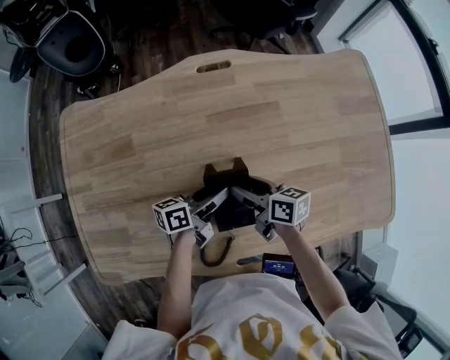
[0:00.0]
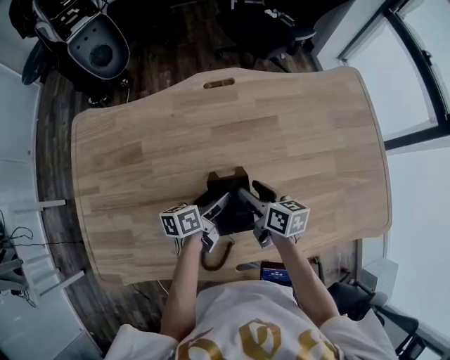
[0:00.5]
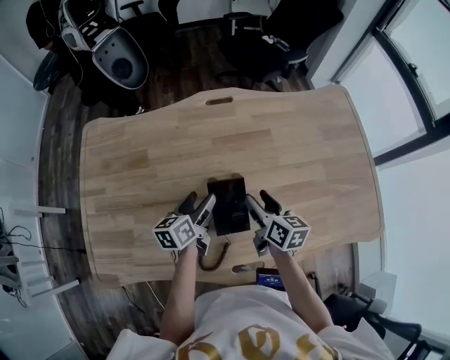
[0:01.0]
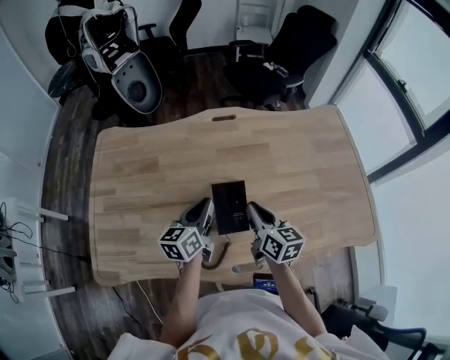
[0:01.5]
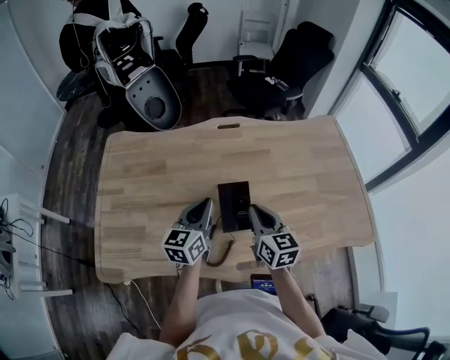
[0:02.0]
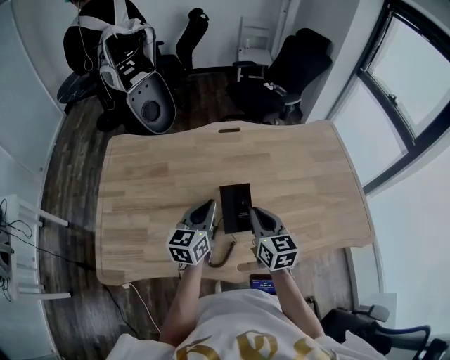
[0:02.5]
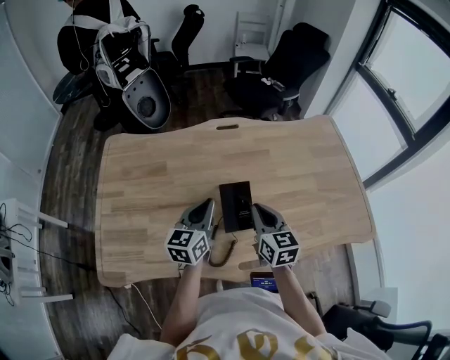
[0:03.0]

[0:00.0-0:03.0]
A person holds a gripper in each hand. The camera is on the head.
0.0 to 1.5 s: Both grippers travel together upward and backward, about 15 cm. The right gripper rotates approximately 30 degrees, and closes. Meanwhile the left gripper swivels about 40 degrees, and closes up.
1.5 to 3.0 s: The right gripper moves about 5 cm; the left gripper moves about 5 cm.

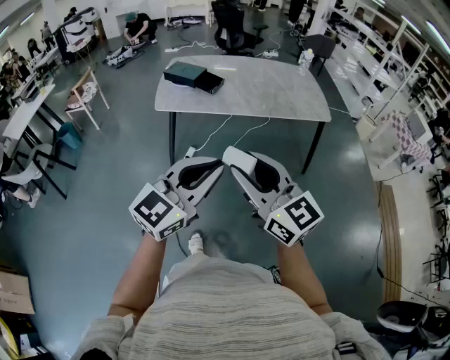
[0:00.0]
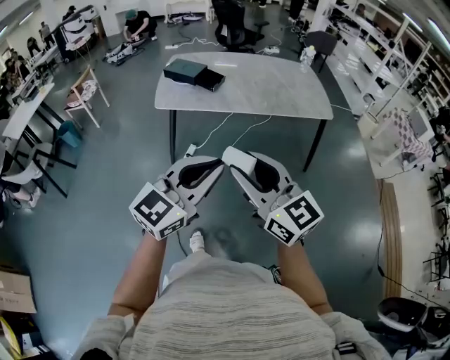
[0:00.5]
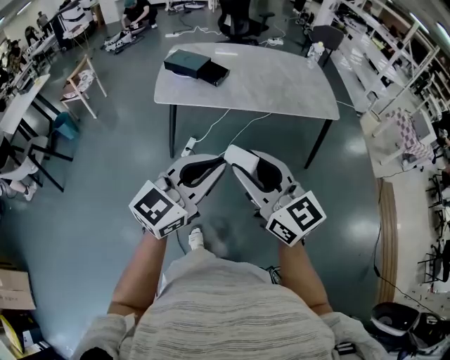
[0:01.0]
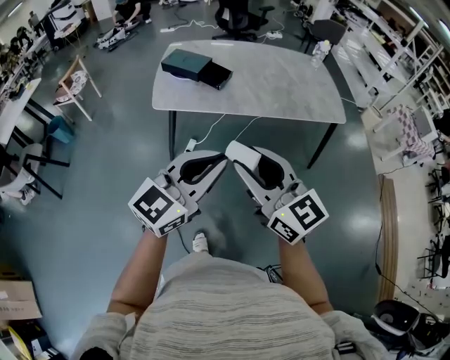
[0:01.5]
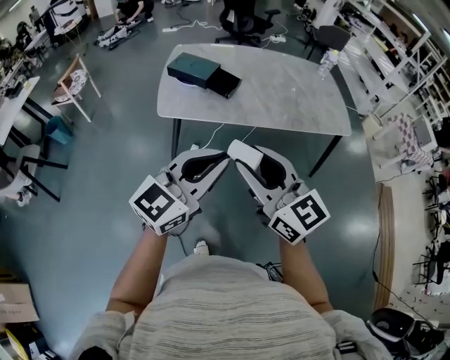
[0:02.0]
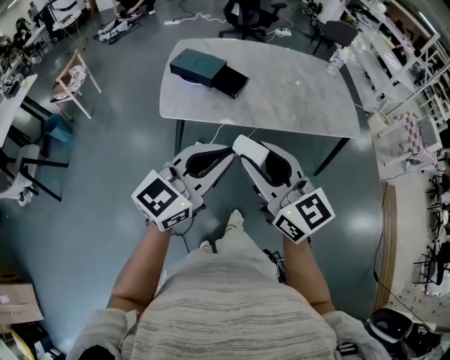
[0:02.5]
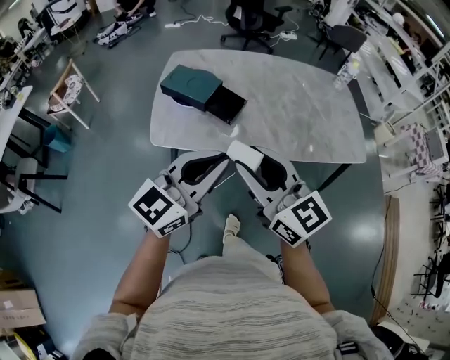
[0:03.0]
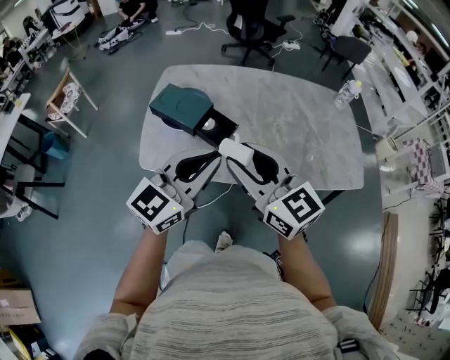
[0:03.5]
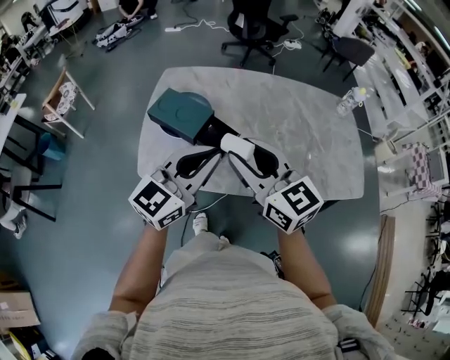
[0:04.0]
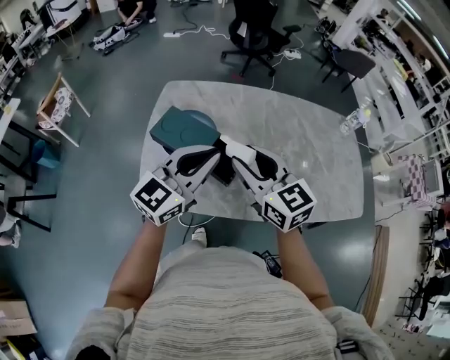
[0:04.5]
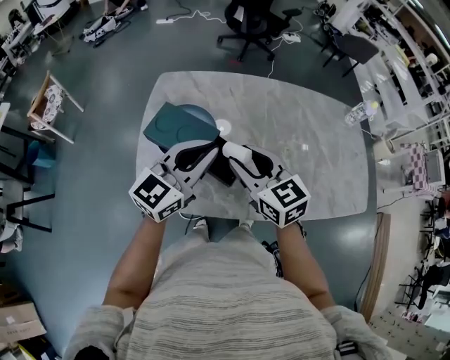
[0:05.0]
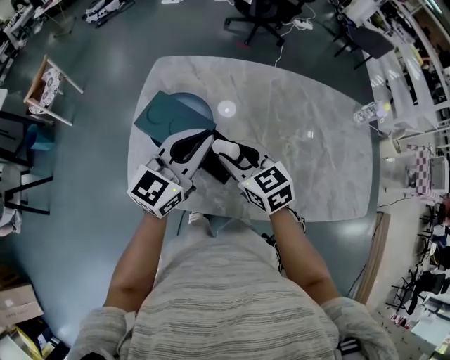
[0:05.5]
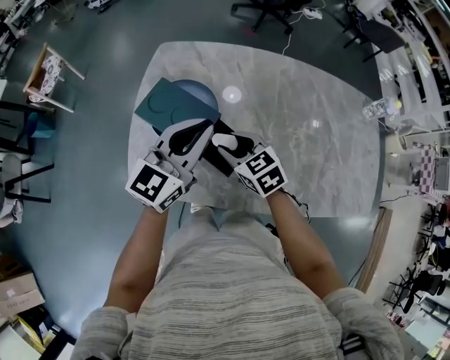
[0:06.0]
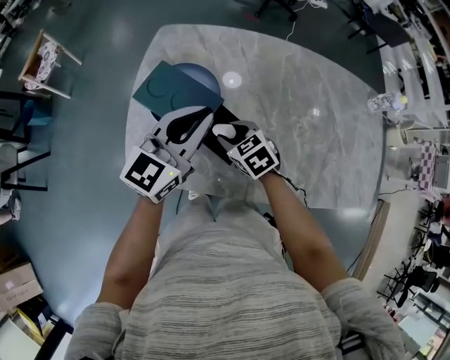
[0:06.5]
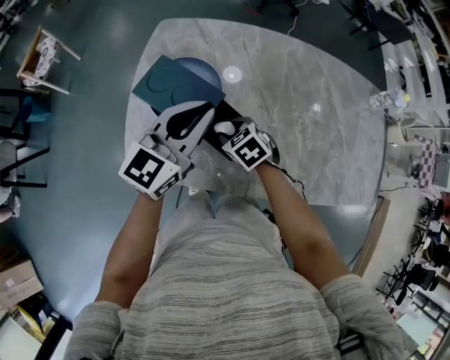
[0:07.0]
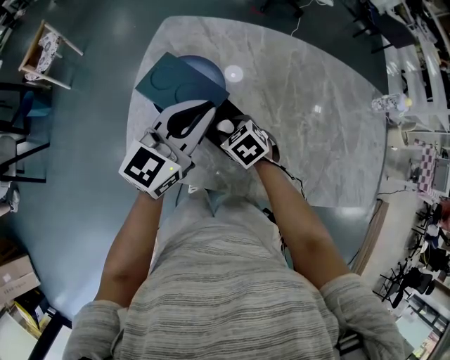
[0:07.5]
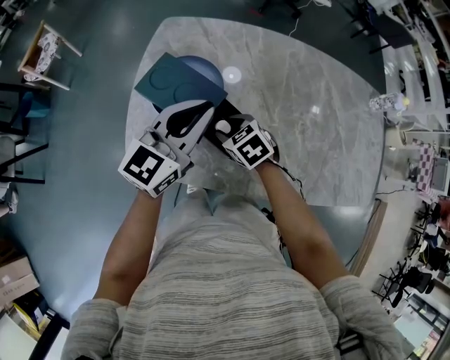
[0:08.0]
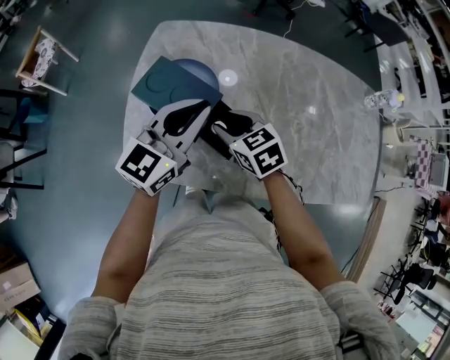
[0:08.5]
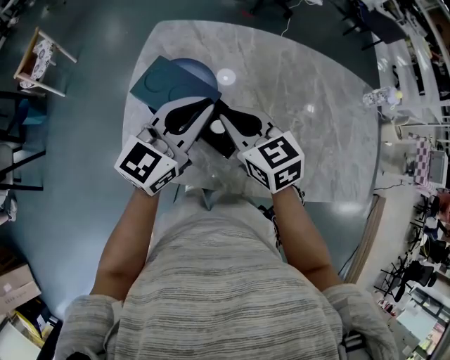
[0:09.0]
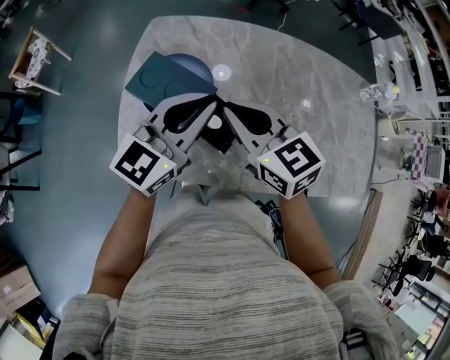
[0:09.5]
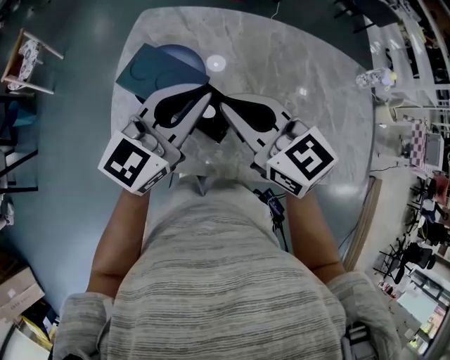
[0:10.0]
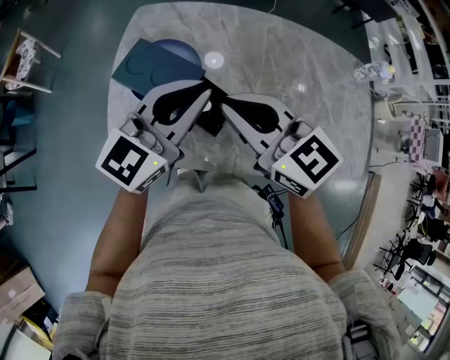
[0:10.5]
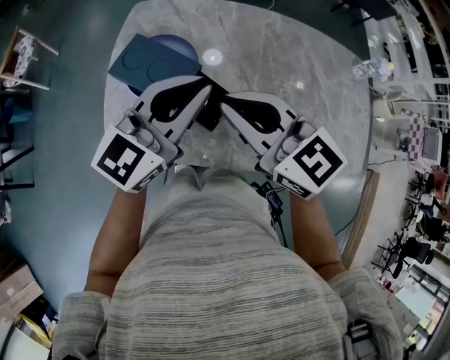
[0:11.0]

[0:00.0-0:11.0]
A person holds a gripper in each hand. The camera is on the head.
0.0 to 2.0 s: Both grippers travel together forward and to the left, about 25 cm.
2.0 to 3.5 s: Both grippers move forward, approximately 30 cm.
3.5 to 5.5 s: The left gripper shifts approximately 25 cm forward. Meanwhile the right gripper travels forward and downward by about 30 cm, and turns by approximately 30 degrees.
5.5 to 7.5 s: The right gripper is displaced downward by about 15 cm, and tips its fingers downward by about 30 degrees.
7.5 to 9.0 s: The right gripper heads upward, covering roughly 20 cm, points its fingers approximately 30 degrees further upward, and closes its fingers.
9.0 to 11.0 s: The right gripper shifts about 10 cm upward and backward, while the left gripper ends up roughly 5 cm from where it was.

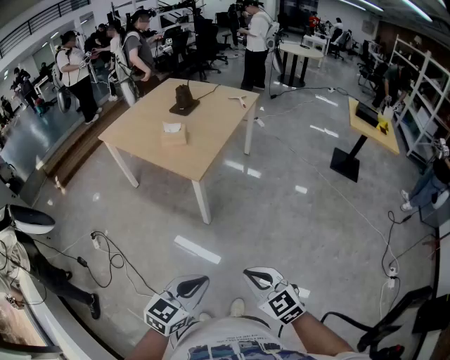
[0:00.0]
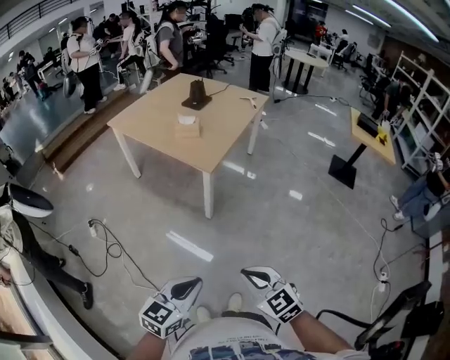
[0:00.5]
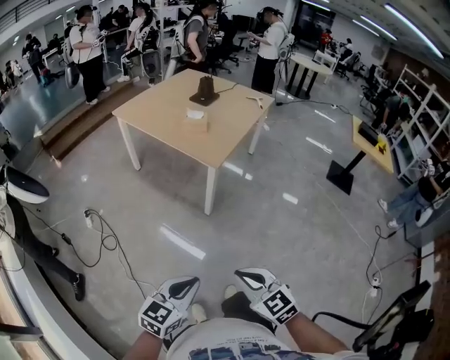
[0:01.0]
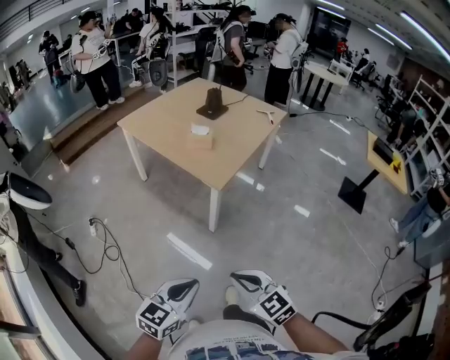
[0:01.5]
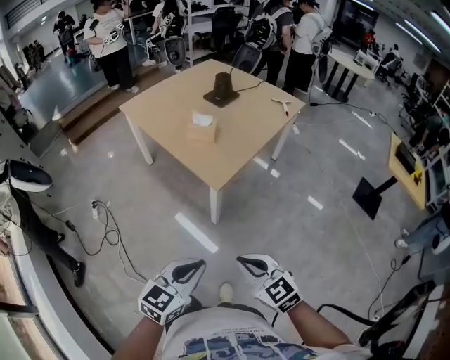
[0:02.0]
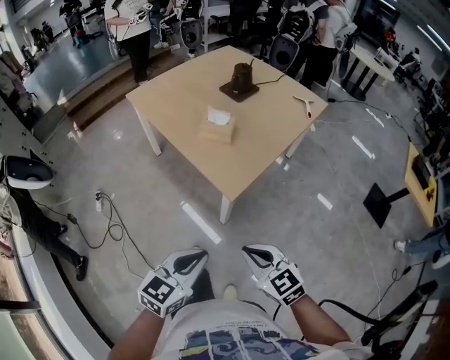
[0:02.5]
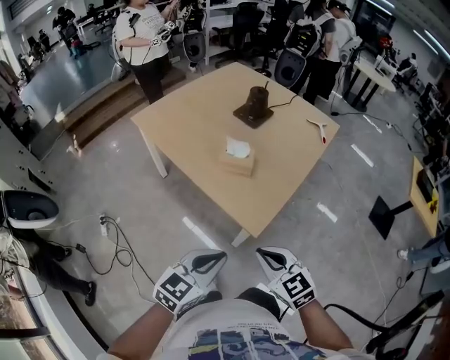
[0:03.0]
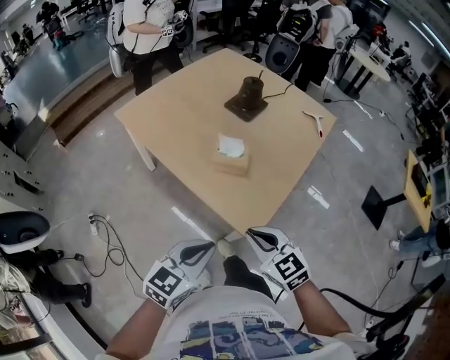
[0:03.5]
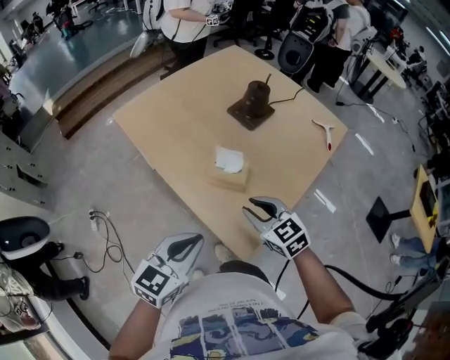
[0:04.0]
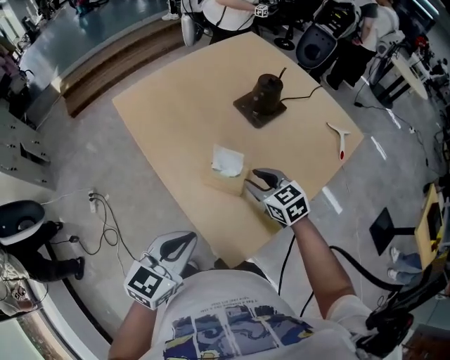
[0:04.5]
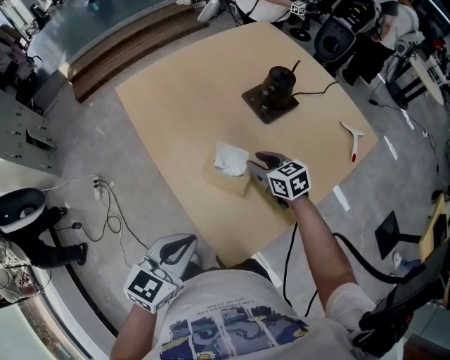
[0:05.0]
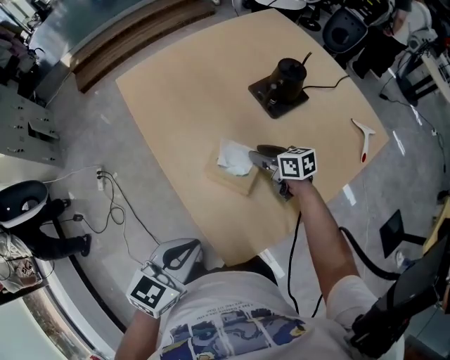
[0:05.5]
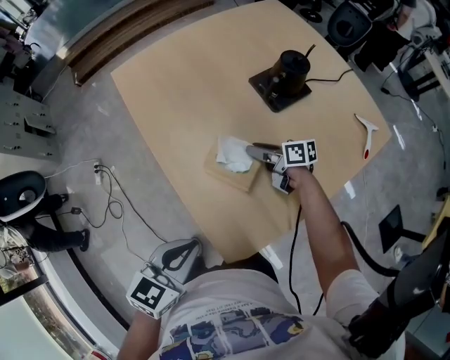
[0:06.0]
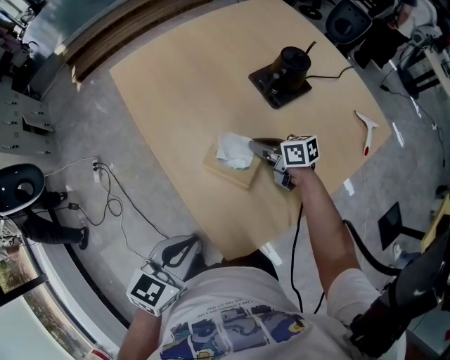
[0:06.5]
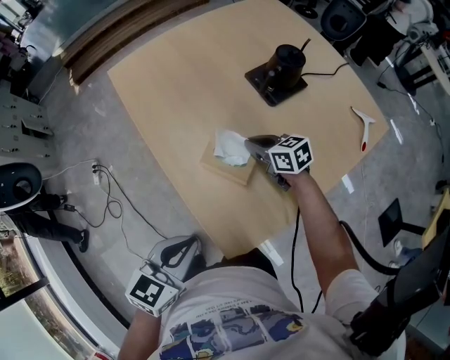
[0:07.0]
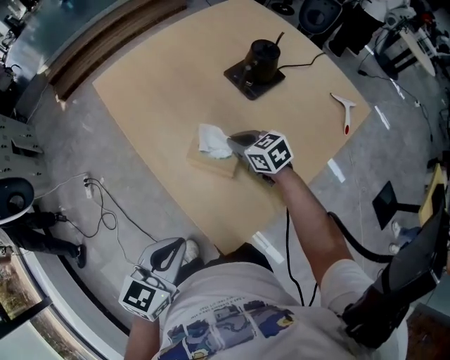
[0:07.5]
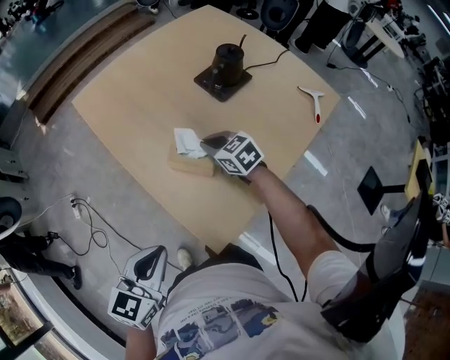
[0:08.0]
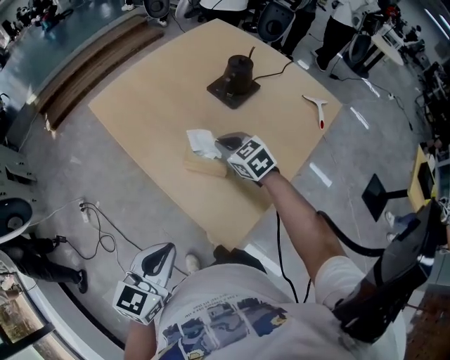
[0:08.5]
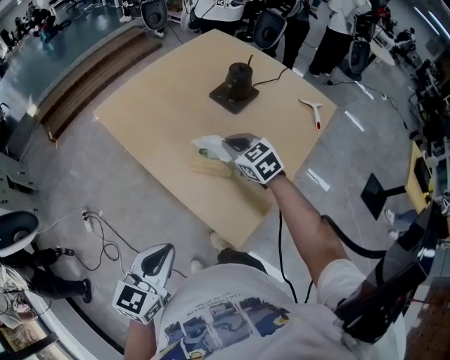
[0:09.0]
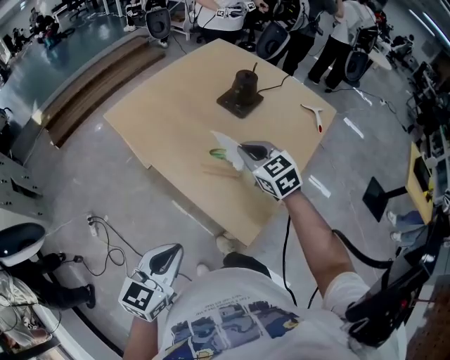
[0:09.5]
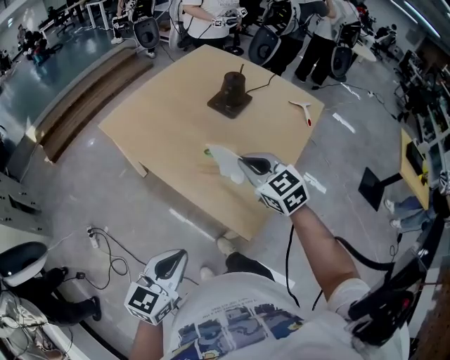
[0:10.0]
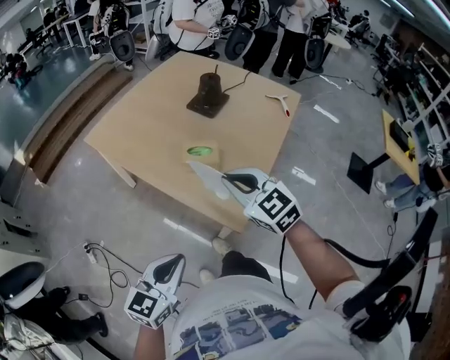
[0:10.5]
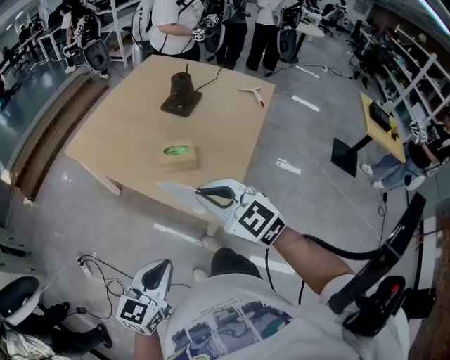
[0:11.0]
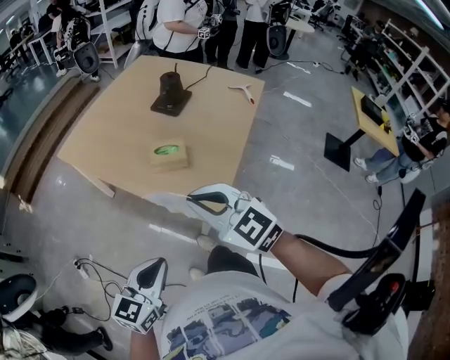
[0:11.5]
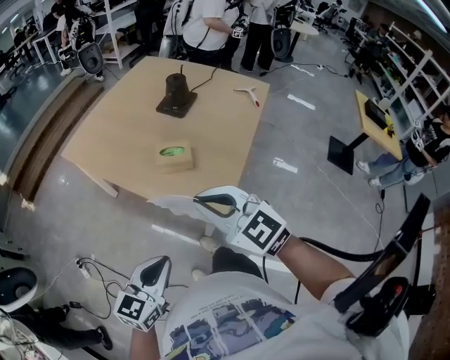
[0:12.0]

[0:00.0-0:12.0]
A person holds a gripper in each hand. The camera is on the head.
0.0 to 2.0 s: Both grippers move forward, roughly 20 cm.
2.0 to 4.0 s: Both grippers are carried forward, roughly 50 cm. The right gripper opens up.
4.0 to 6.0 s: The right gripper goes about 30 cm forward and downward, and rotates around the line of its fingers by some 50 degrees, clockwise from behind; the left gripper shifts some 10 cm downward, forward and to the right.
6.0 to 8.0 s: The right gripper moves upward, approximately 5 cm, twists roughly 40 degrees counterclockwise, seen from behind, and closes. The left gripper changes place by about 5 cm.
8.0 to 10.0 s: The right gripper moves upward and backward, some 25 cm, and rotates about 30 degrees. The left gripper moves backward and to the left, some 15 cm.
10.0 to 12.0 s: The right gripper goes approximately 20 cm backward.

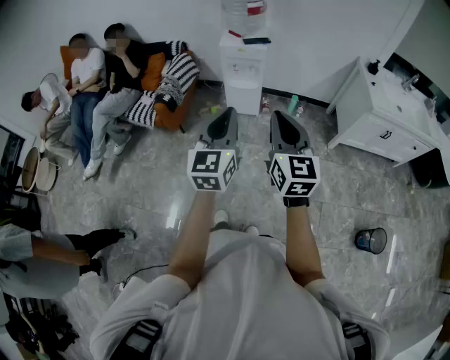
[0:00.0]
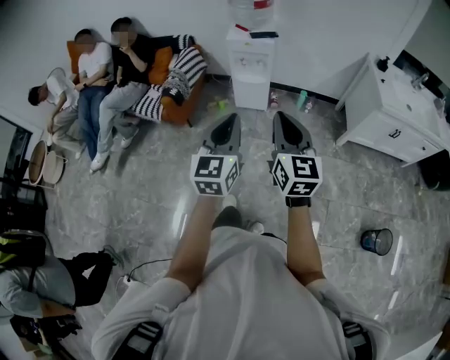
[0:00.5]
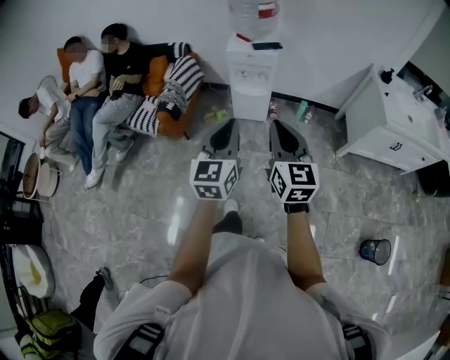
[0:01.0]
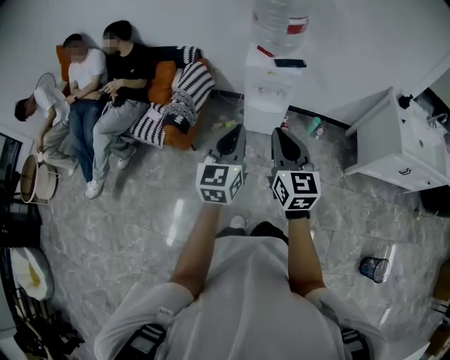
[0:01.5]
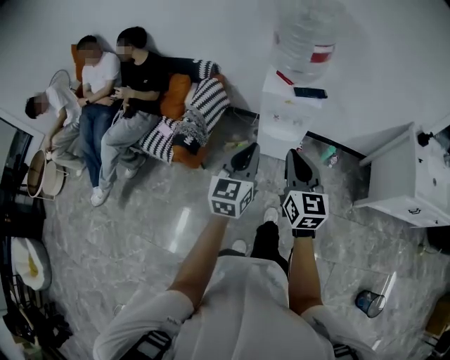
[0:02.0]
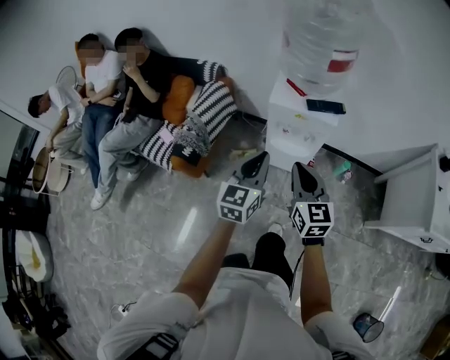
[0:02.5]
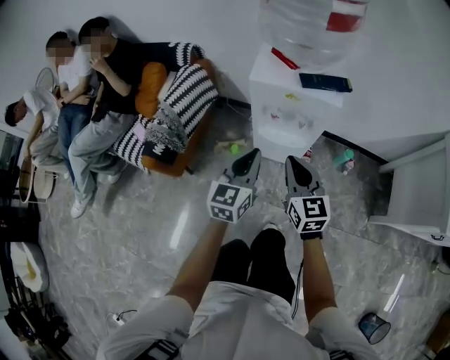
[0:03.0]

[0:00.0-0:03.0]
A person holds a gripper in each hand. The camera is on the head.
0.0 to 1.5 s: Both grippers move forward and to the left, approximately 30 cm.
1.5 to 3.0 s: Both grippers move downward and forward, about 40 cm.
